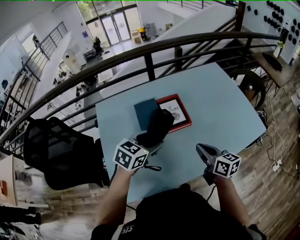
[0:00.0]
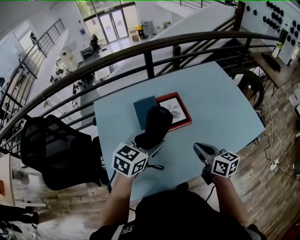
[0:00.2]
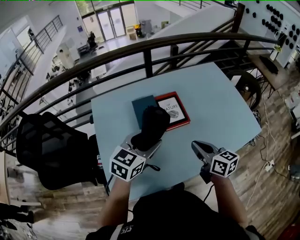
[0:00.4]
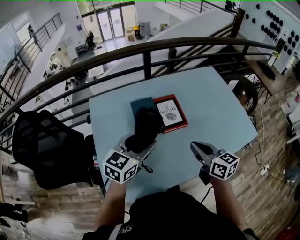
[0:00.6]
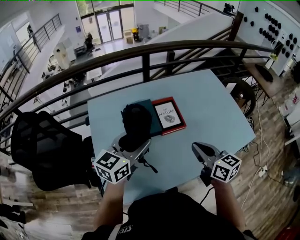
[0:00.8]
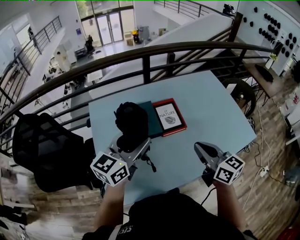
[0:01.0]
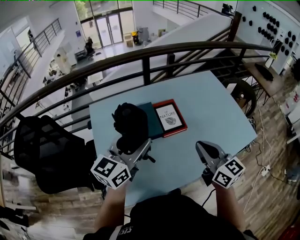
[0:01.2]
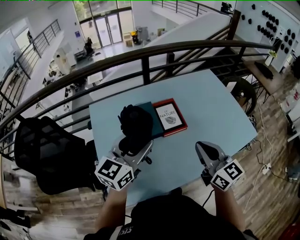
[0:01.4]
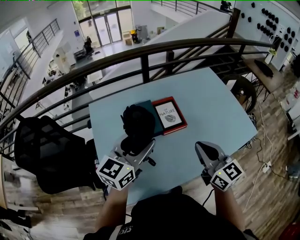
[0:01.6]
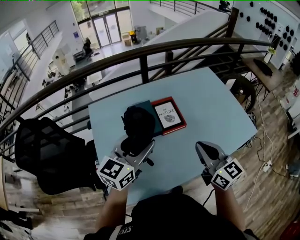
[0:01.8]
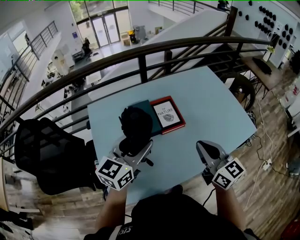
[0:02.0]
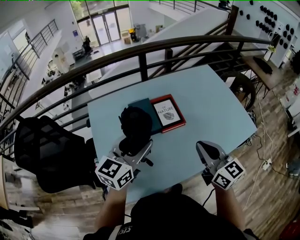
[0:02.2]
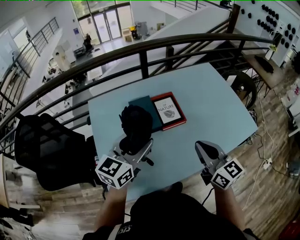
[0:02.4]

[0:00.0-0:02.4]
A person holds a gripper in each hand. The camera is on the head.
0:00.0 to 0:01.2: The right gripper travels upward by about 10 cm, and rotates approximately 20 degrees. The left gripper is displaced upward and to the left by approximately 15 cm, and points its fingers some 30 degrees further upward.
0:01.2 to 0:02.4: The grippers make only small movements.

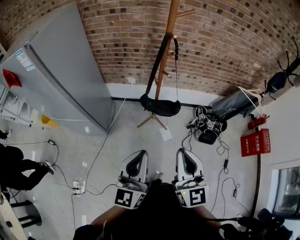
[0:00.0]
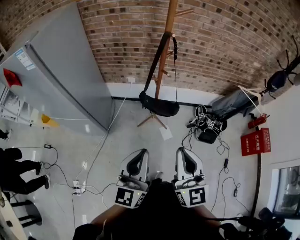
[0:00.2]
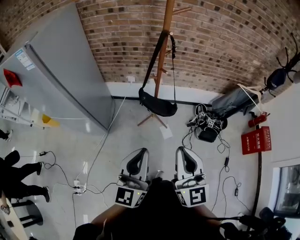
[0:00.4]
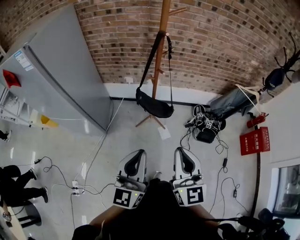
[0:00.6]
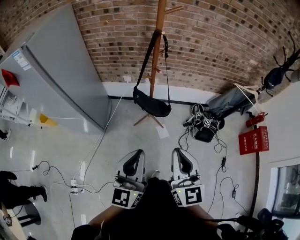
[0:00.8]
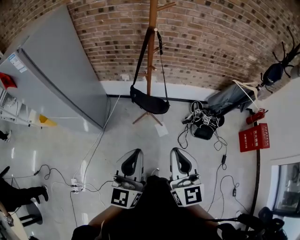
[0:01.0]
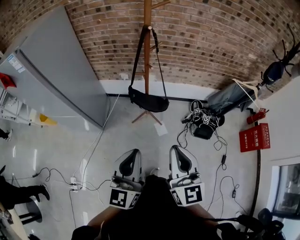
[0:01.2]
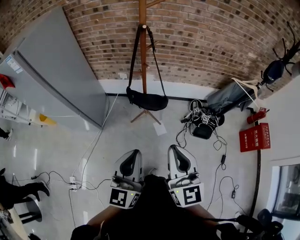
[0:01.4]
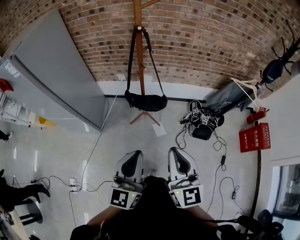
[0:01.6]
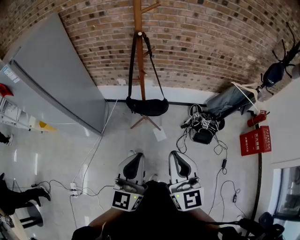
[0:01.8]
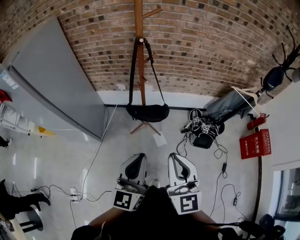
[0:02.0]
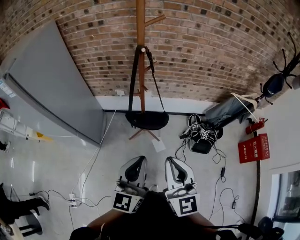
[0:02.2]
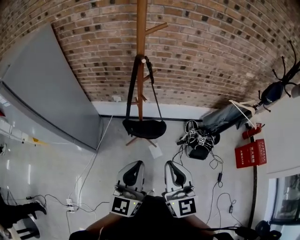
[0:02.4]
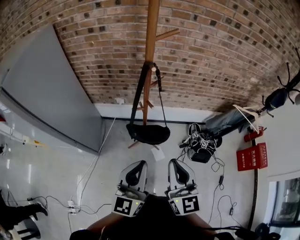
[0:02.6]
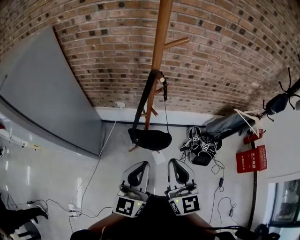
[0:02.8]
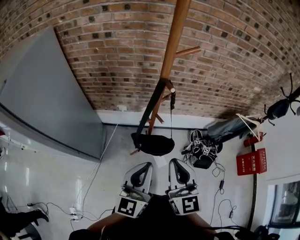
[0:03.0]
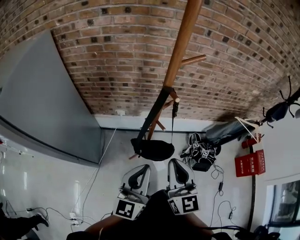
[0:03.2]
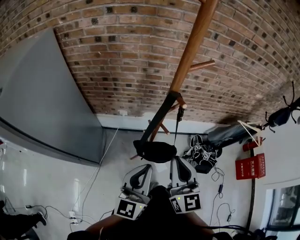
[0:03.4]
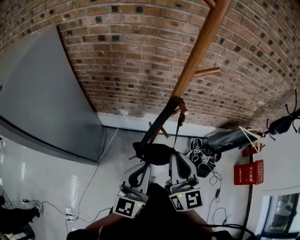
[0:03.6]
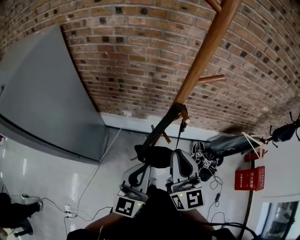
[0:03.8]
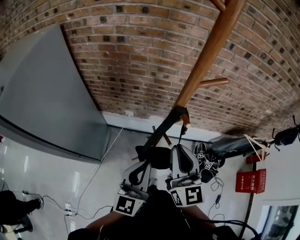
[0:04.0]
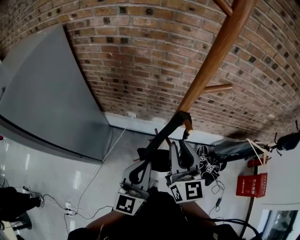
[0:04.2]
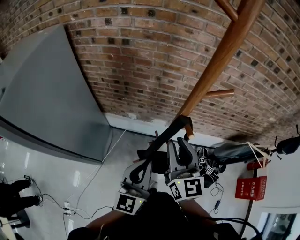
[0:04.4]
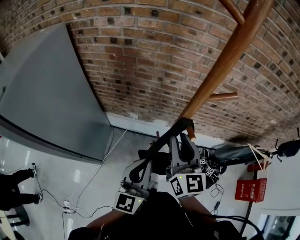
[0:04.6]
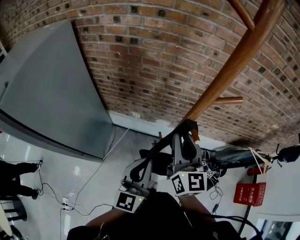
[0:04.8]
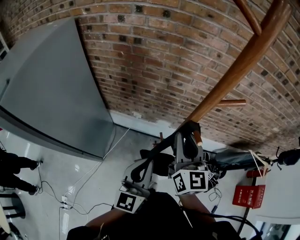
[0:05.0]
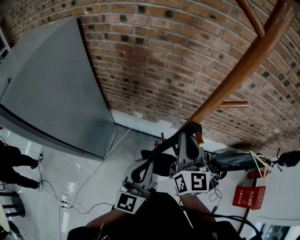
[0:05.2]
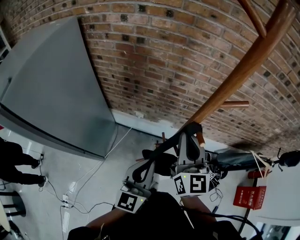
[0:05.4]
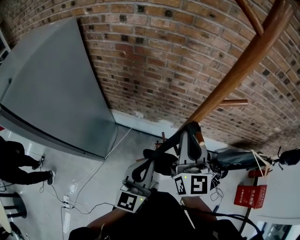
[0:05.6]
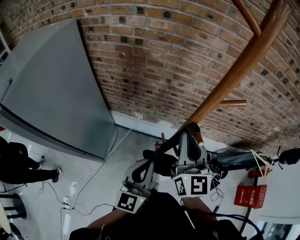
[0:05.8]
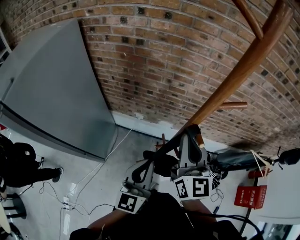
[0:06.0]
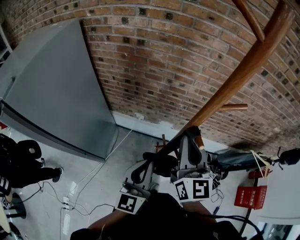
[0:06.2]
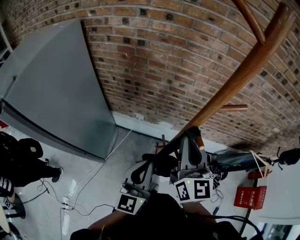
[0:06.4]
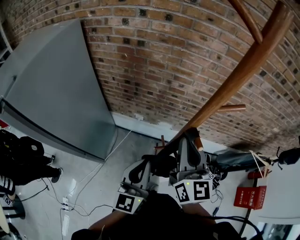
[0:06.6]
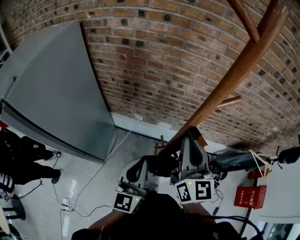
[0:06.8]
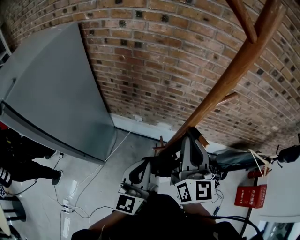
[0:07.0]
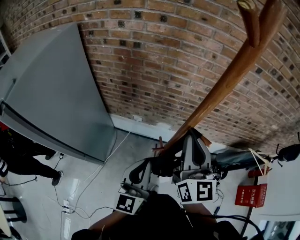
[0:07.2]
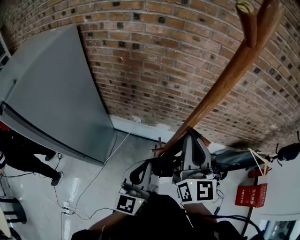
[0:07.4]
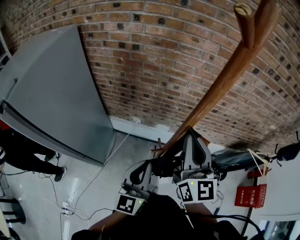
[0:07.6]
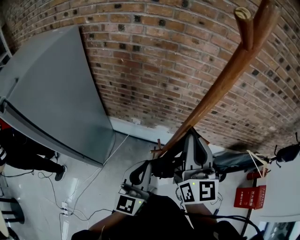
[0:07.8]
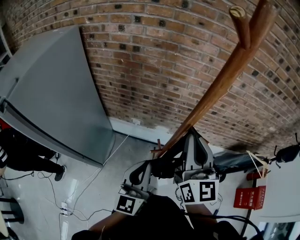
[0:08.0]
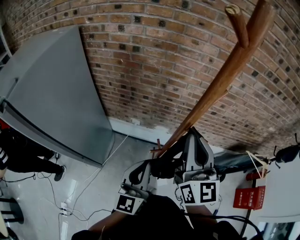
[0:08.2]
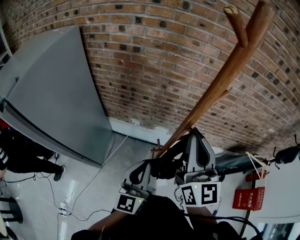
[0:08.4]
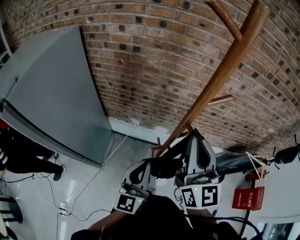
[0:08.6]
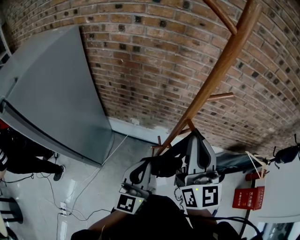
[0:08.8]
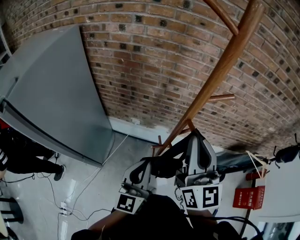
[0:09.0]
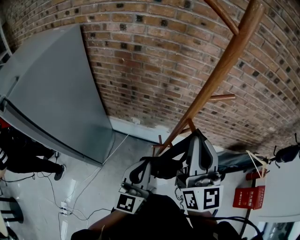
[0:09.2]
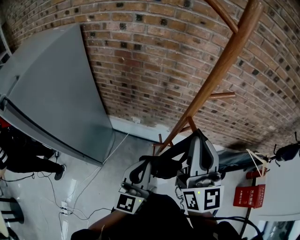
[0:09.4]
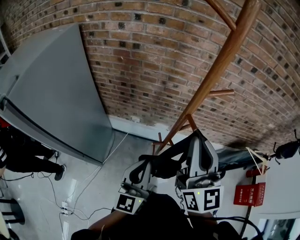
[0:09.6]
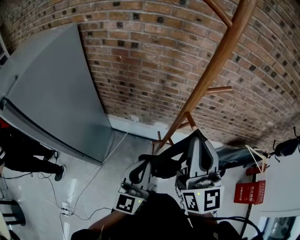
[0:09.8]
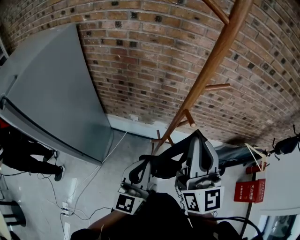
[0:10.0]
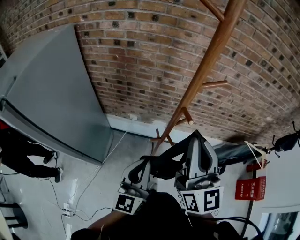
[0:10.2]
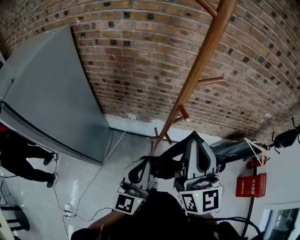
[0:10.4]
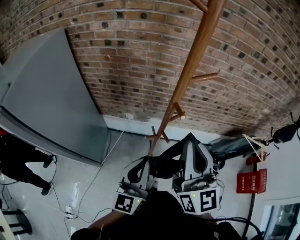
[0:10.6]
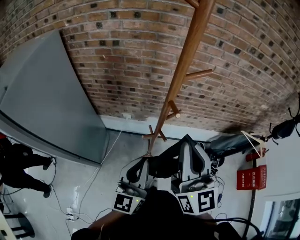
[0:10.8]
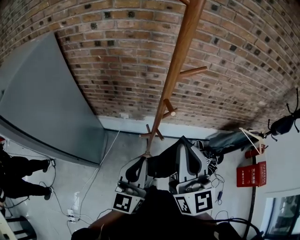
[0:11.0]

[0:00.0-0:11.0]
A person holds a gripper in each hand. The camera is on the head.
0:00.0 to 0:01.6: The two grippers go about 10 cm to the right.
0:01.6 to 0:03.2: Both grippers move forward and to the left, roughly 30 cm.
0:03.2 to 0:04.8: The left gripper moves forward, about 10 cm. Meanwhile the right gripper shifts roughly 20 cm forward.
0:04.8 to 0:06.2: The grippers move only a little.
0:06.2 to 0:07.8: The right gripper shifts by some 5 cm.
0:07.8 to 0:09.4: The grippers make only small movements.
0:09.4 to 0:11.0: The right gripper is displaced backward by approximately 5 cm.

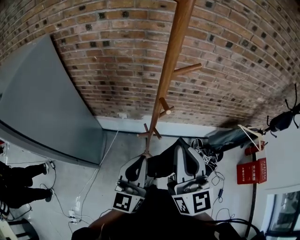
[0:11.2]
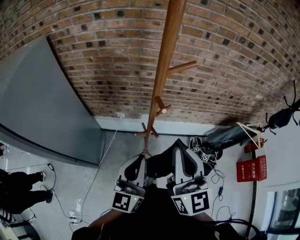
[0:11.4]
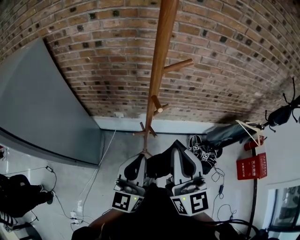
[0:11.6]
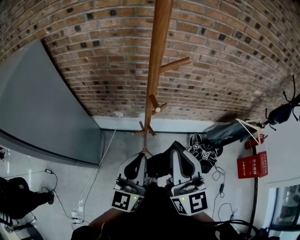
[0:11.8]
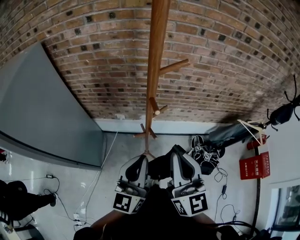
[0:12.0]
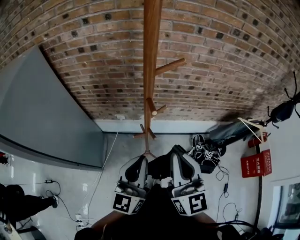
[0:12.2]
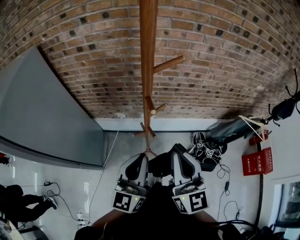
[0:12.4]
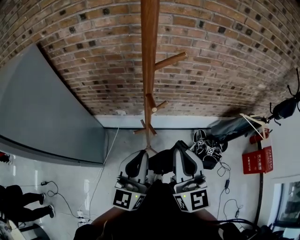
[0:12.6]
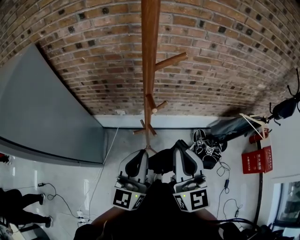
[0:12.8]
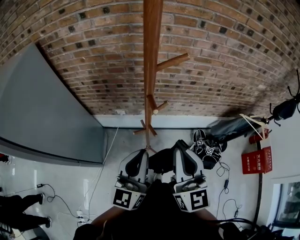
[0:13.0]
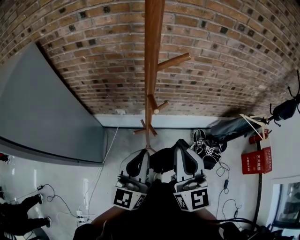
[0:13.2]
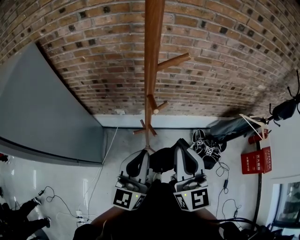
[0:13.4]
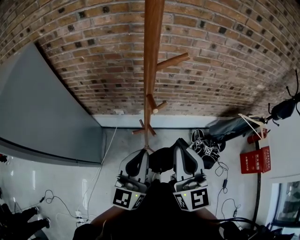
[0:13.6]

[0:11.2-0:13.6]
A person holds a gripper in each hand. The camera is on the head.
0:11.2 to 0:12.4: The right gripper goes approximately 5 cm downward.
0:12.4 to 0:13.6: The grippers move only a little.

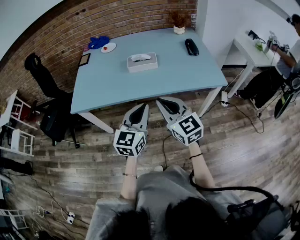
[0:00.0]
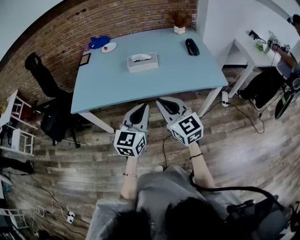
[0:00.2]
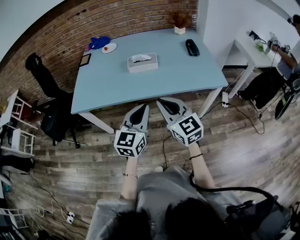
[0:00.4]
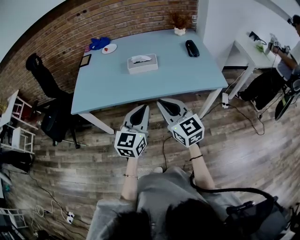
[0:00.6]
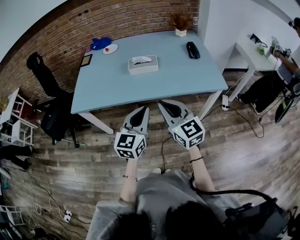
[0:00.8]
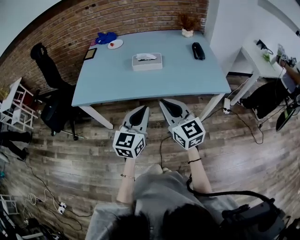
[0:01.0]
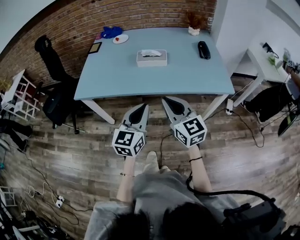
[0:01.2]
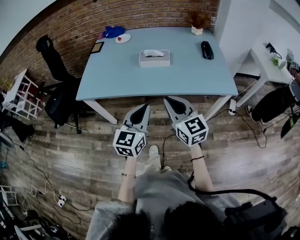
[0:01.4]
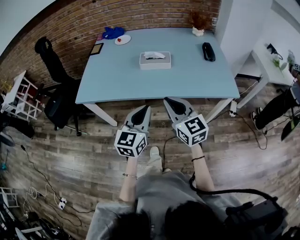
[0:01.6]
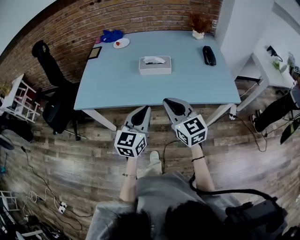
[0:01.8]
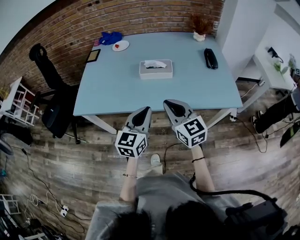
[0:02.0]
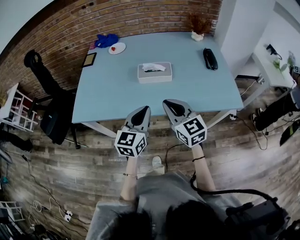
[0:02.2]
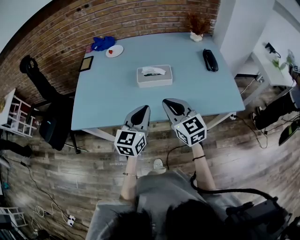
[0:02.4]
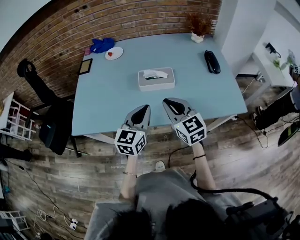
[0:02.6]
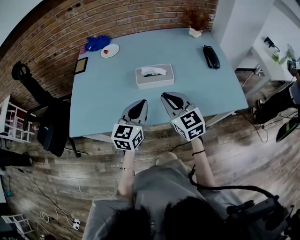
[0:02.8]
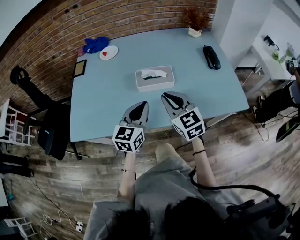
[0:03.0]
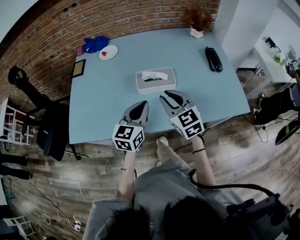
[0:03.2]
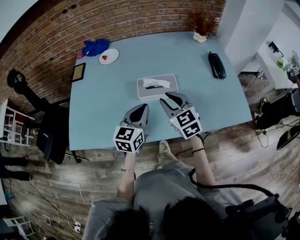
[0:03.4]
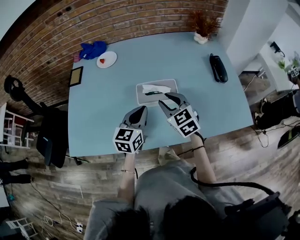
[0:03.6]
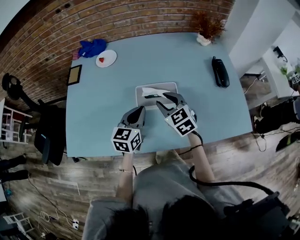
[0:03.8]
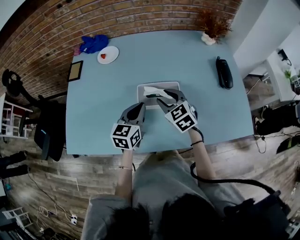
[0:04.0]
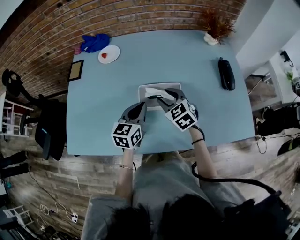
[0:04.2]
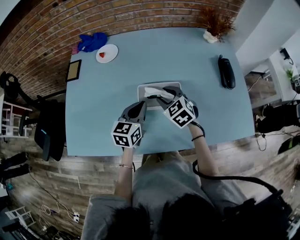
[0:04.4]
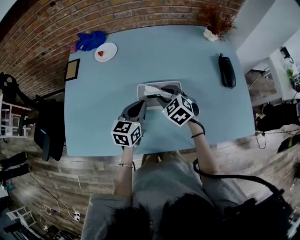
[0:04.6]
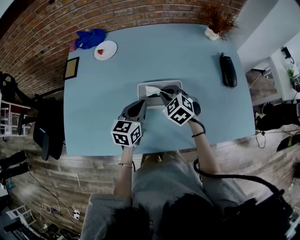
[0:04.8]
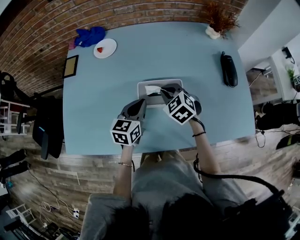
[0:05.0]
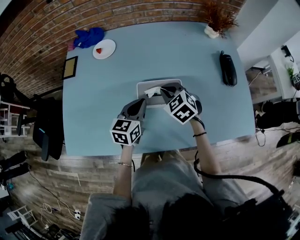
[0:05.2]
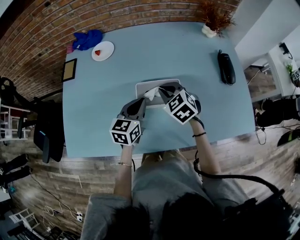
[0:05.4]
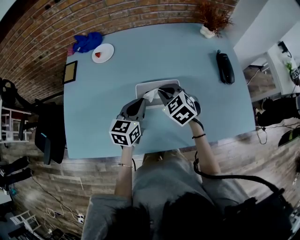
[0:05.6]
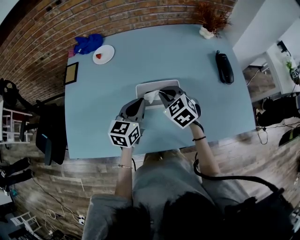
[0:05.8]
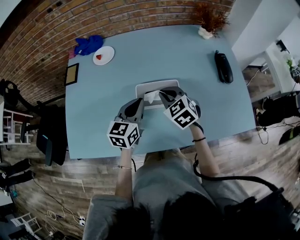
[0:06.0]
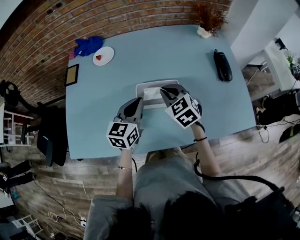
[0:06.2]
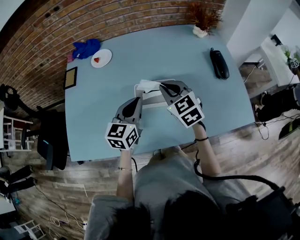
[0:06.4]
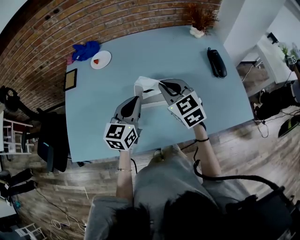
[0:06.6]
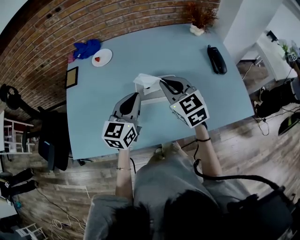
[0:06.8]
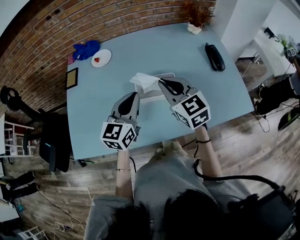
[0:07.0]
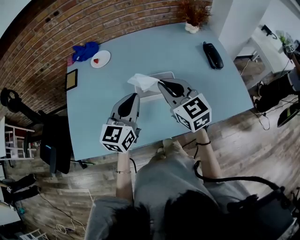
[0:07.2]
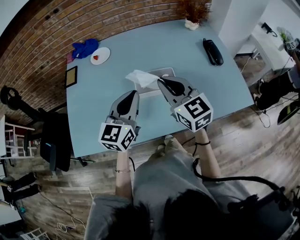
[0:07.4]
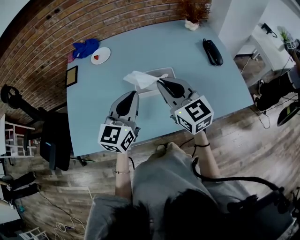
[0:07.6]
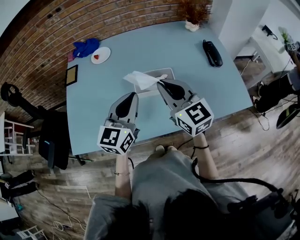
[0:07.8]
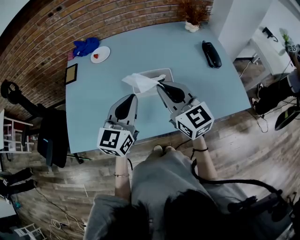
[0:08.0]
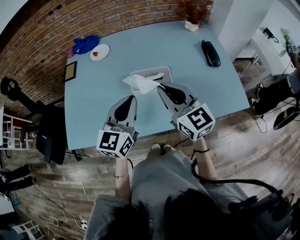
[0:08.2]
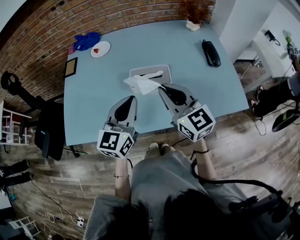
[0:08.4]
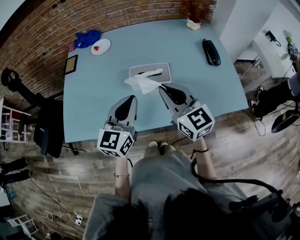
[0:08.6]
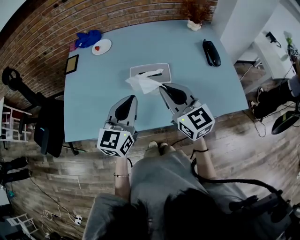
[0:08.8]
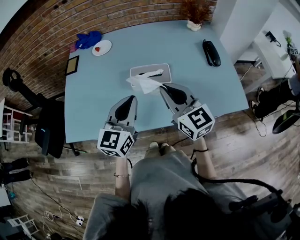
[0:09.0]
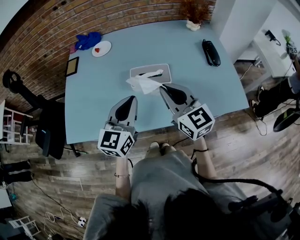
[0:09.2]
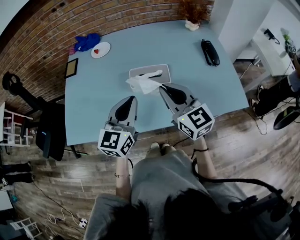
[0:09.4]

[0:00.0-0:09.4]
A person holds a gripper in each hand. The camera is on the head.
0:00.0 to 0:01.6: The right gripper changes place by some 5 cm.
0:01.6 to 0:03.2: Both grippers move forward, about 25 cm.
0:03.2 to 0:04.8: The grippers both shift forward and downward by roughly 20 cm. The right gripper swivels approximately 30 degrees, and opens and closes again.
0:04.8 to 0:06.2: Both grippers travel together upward, some 5 cm.
0:06.2 to 0:07.8: The two grippers go approximately 15 cm upward and backward. The right gripper tilts its fingers about 30 degrees upward.
0:07.8 to 0:09.4: The left gripper moves roughly 5 cm, while the right gripper ends up roughly 5 cm from where it was.
